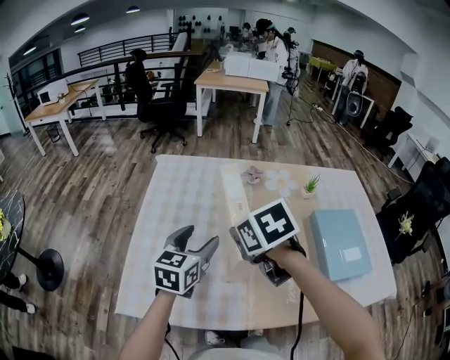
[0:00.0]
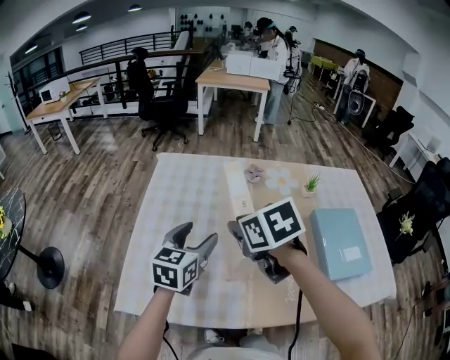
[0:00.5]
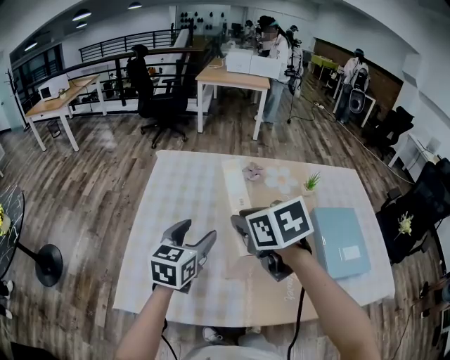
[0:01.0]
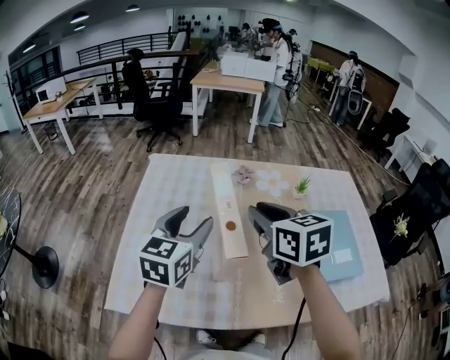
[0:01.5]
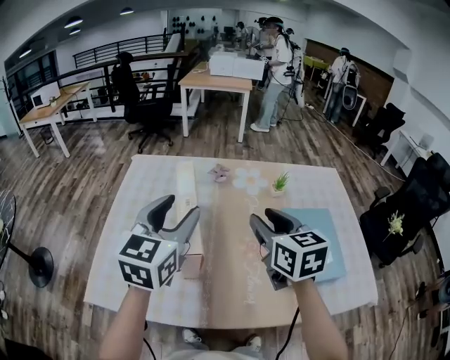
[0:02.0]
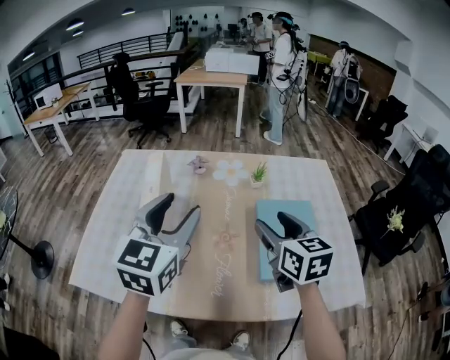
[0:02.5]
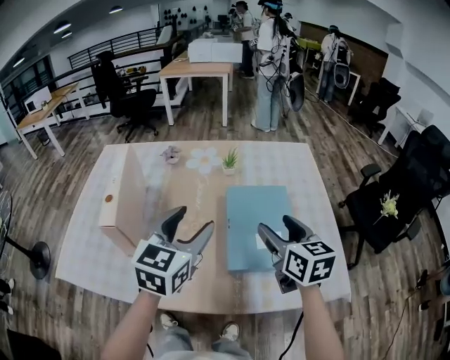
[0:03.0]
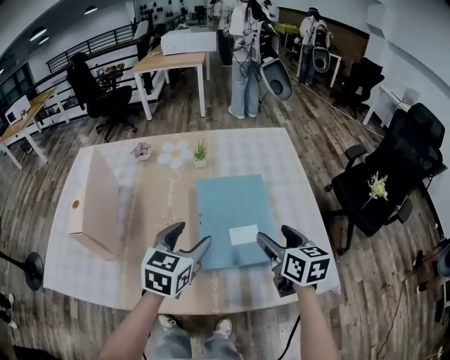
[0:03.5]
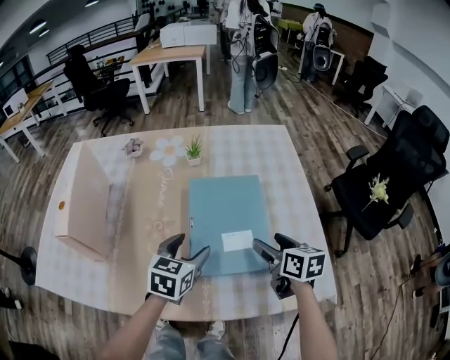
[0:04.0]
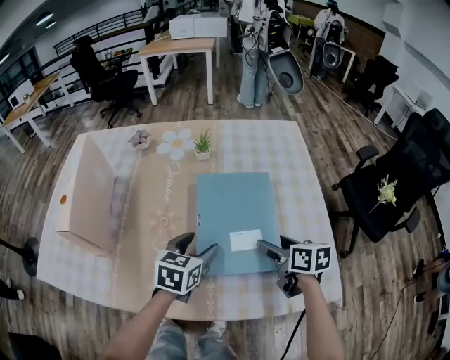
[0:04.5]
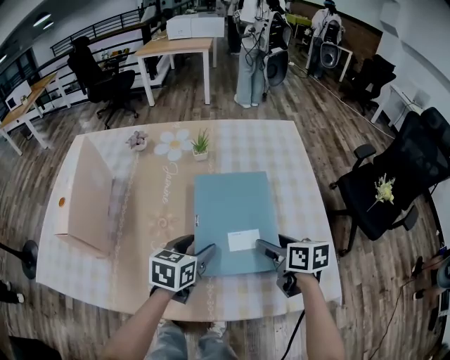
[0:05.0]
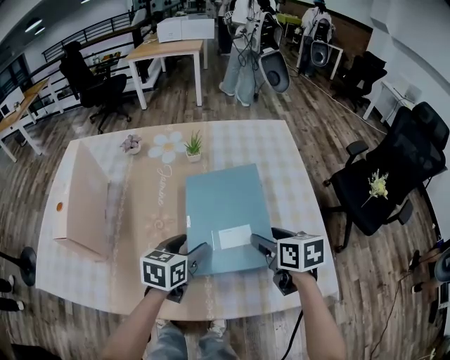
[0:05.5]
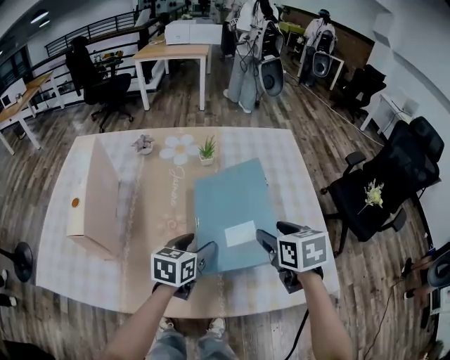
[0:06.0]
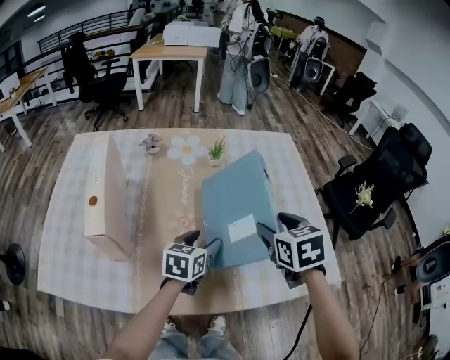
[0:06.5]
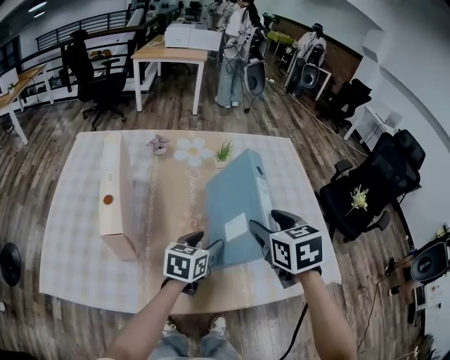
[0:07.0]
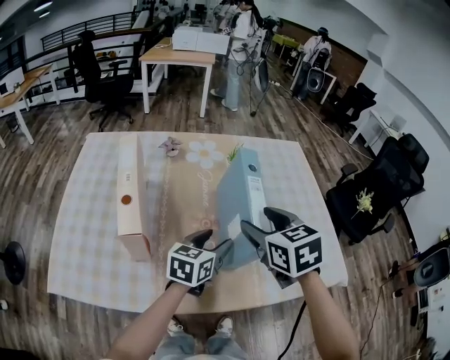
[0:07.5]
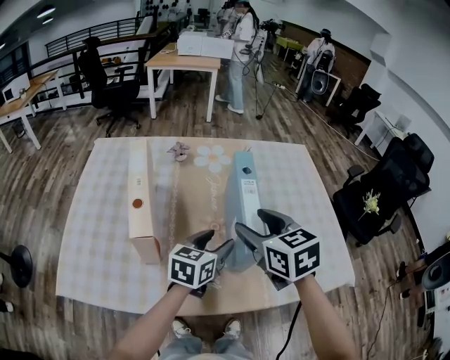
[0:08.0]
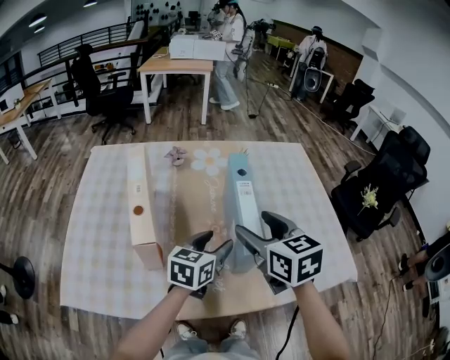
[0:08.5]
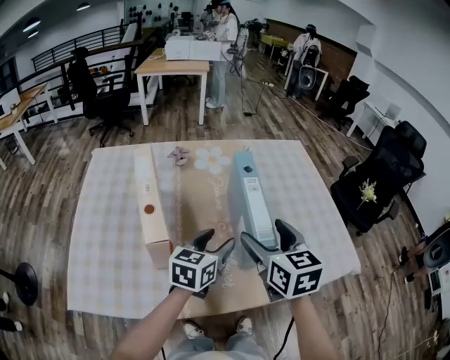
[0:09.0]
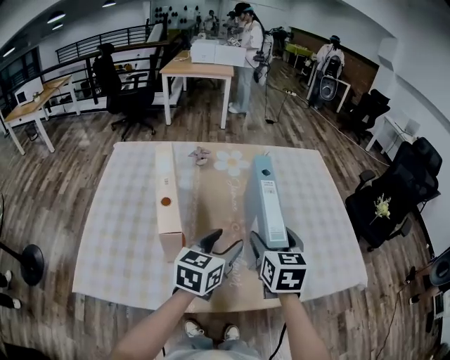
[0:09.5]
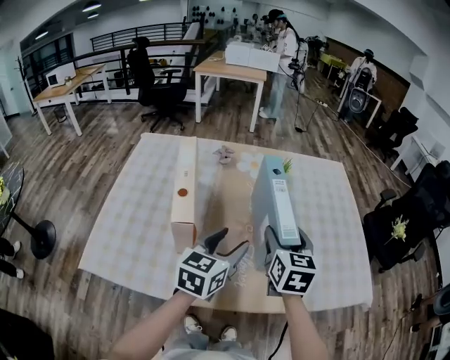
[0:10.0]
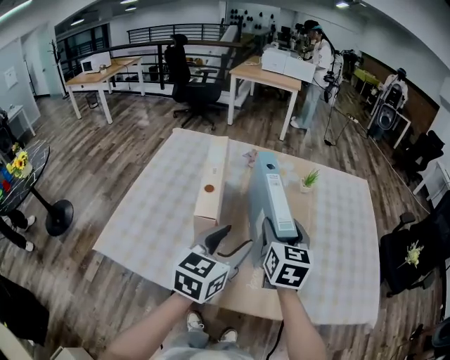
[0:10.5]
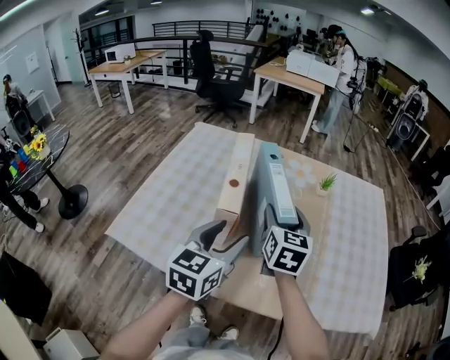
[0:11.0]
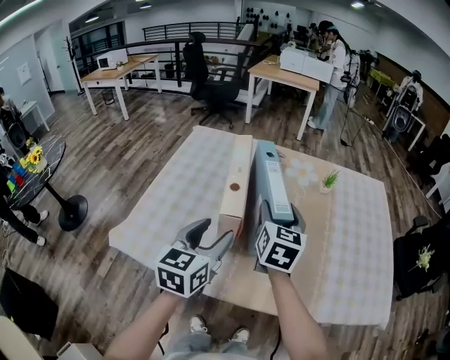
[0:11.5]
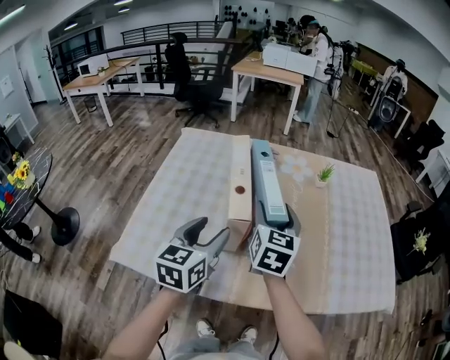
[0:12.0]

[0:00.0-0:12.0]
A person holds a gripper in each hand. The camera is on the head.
0:00.0 to 0:02.0: The right gripper travels to the right by approximately 20 cm, and tilts its fingers about 30 degrees upward. Meanwhile the left gripper goes approximately 15 cm upward and to the right.
0:02.0 to 0:04.0: The two grippers go some 40 cm to the right and downward. The left gripper rotates some 30 degrees. Meanwhile the right gripper swivels about 30 degrees, and opens.
0:04.0 to 0:06.0: The right gripper is displaced upward and to the left by roughly 10 cm, and turns by roughly 20 degrees.
0:06.0 to 0:08.0: The right gripper moves to the left and upward, some 25 cm. The left gripper goes roughly 10 cm to the left and upward.
0:08.0 to 0:10.0: The left gripper heads upward and to the left, covering some 10 cm. The right gripper swivels roughly 20 degrees.
0:10.0 to 0:12.0: The two grippers go roughly 20 cm to the left.

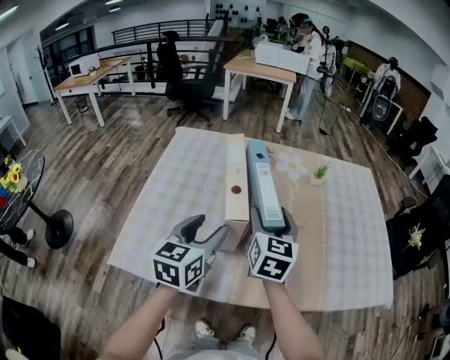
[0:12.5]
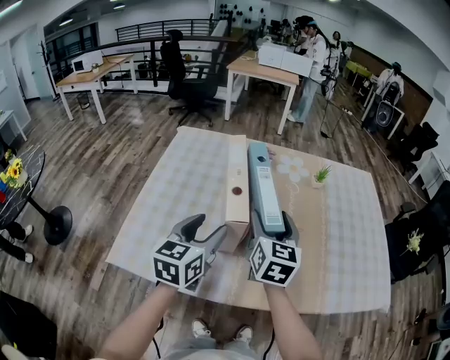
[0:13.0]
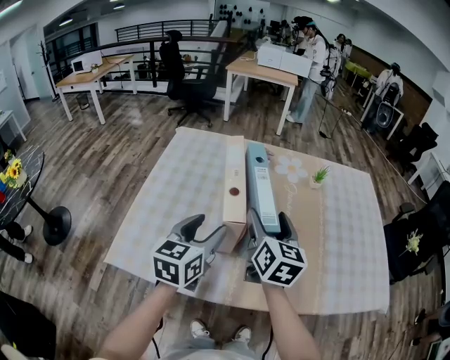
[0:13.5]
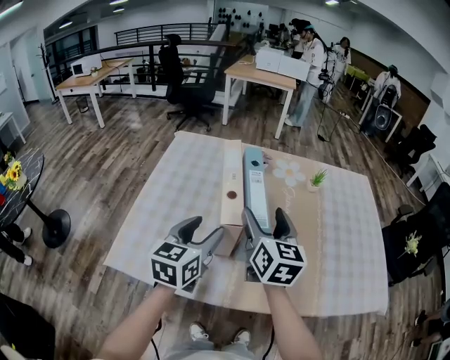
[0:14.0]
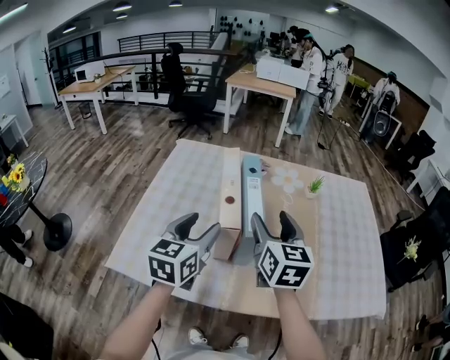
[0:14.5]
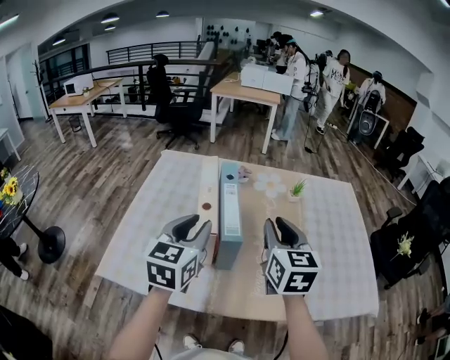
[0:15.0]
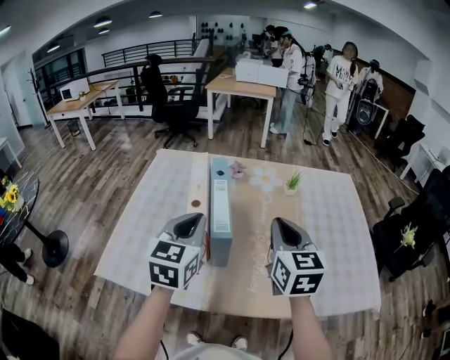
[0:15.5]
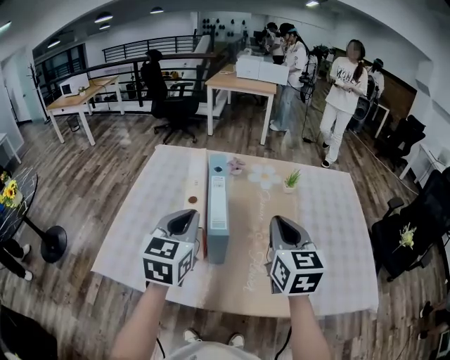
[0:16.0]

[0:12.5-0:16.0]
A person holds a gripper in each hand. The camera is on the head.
0:12.5 to 0:14.5: The right gripper travels upward by roughly 5 cm.
0:14.5 to 0:16.0: The right gripper goes some 10 cm to the right, and closes its fingers. Meanwhile the left gripper heads to the right, covering roughly 5 cm, and closes its fingers.

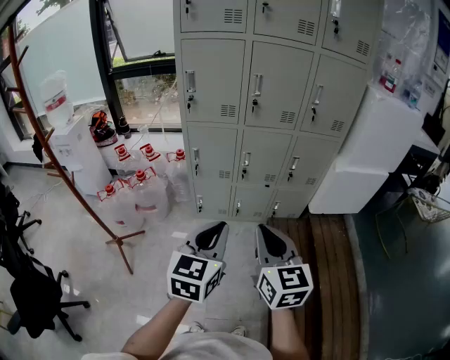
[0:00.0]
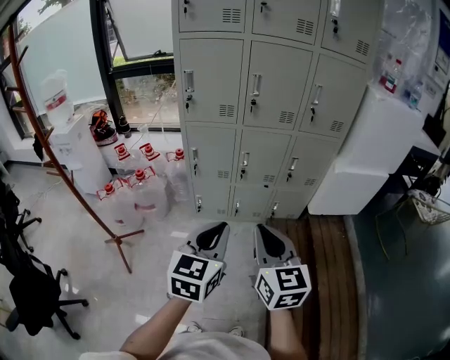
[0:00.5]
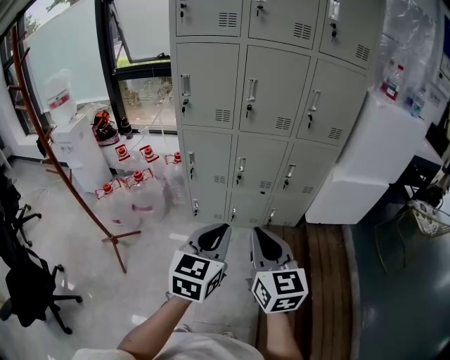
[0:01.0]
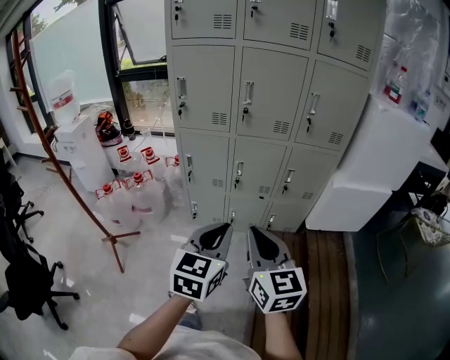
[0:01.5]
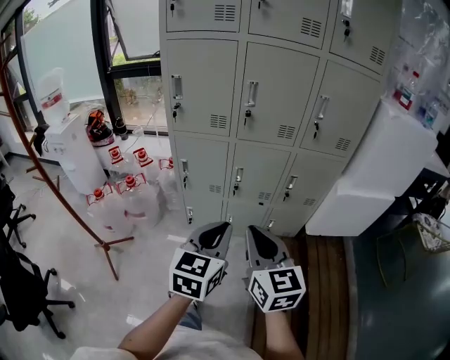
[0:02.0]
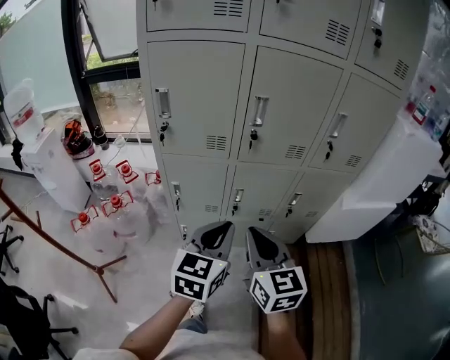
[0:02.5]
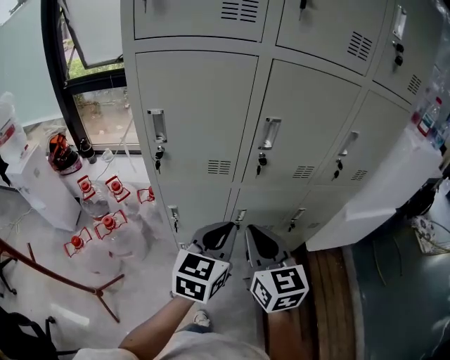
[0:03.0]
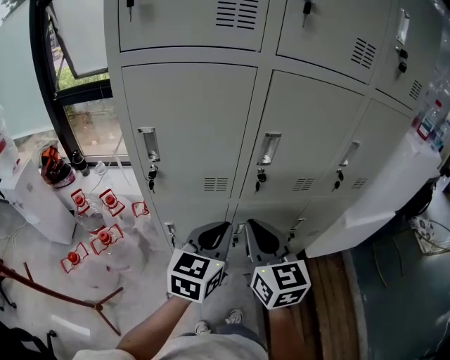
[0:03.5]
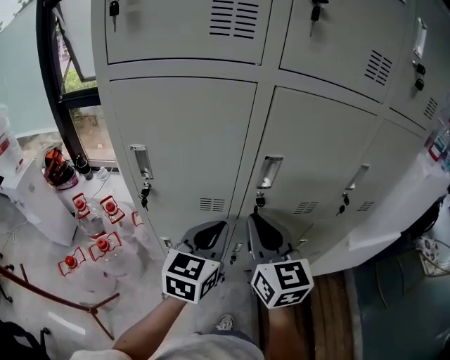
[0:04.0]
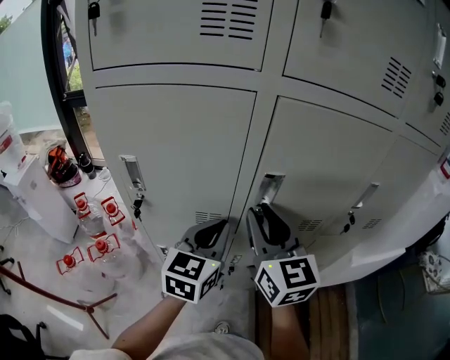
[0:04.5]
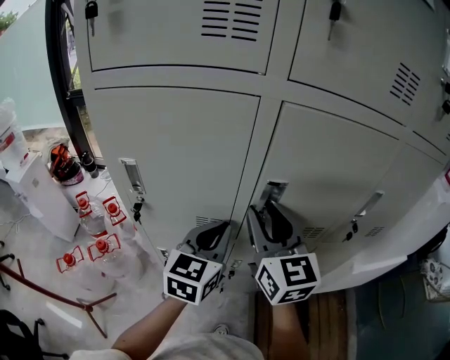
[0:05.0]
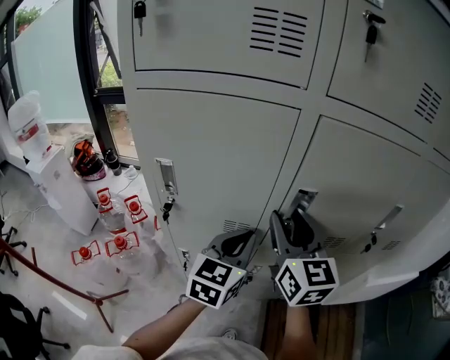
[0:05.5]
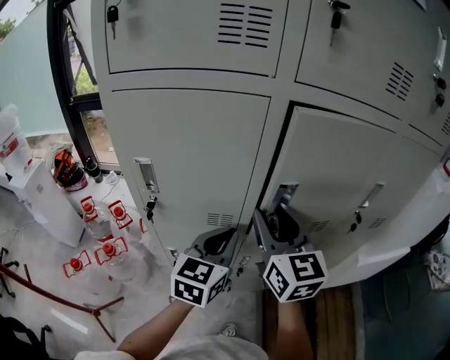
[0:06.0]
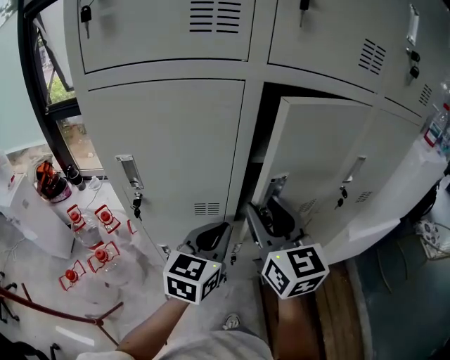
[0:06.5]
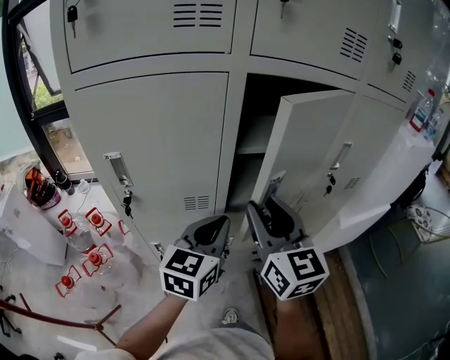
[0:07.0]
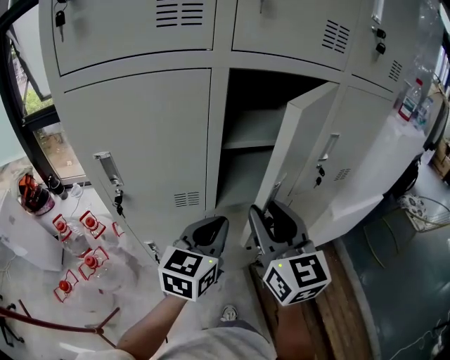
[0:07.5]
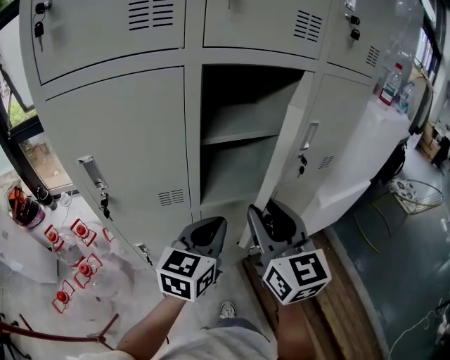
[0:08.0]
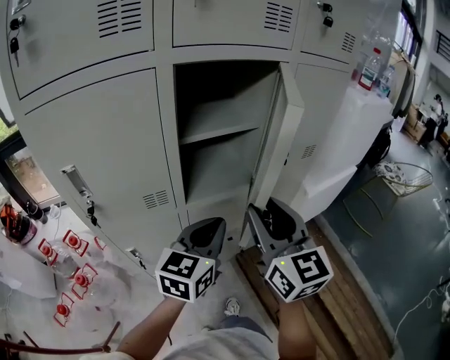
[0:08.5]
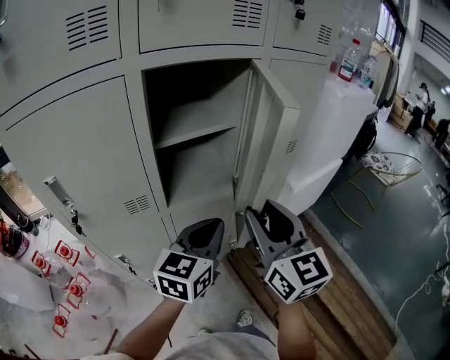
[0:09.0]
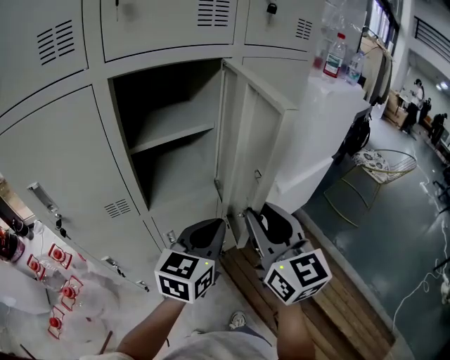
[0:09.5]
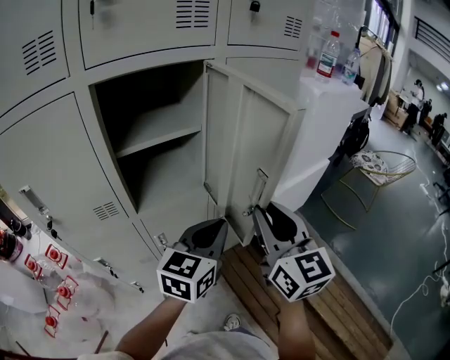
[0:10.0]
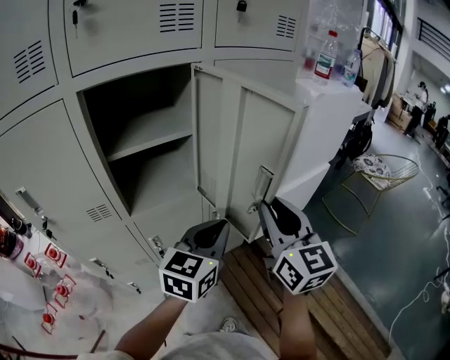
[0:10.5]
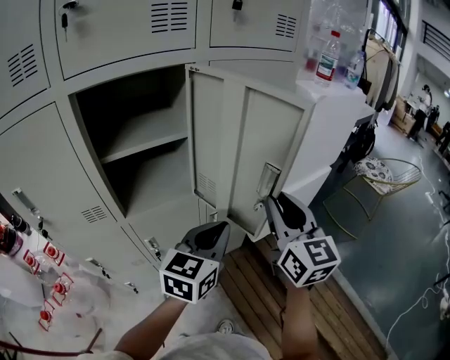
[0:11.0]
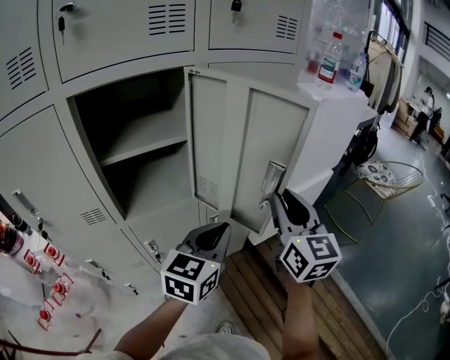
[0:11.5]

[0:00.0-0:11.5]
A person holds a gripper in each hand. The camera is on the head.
0:00.0 to 0:02.0: The left gripper moves forward and to the right, approximately 15 cm; the right gripper goes roughly 15 cm forward.
0:02.0 to 0:04.0: The two grippers go approximately 40 cm forward.
0:04.0 to 0:06.0: The right gripper moves forward, approximately 5 cm, and opens up.
0:06.0 to 0:07.5: The right gripper moves backward and to the right, roughly 10 cm; the left gripper is displaced to the right by roughly 5 cm.
0:07.5 to 0:09.5: The two grippers go approximately 15 cm to the right.
0:09.5 to 0:11.5: The left gripper moves to the right and forward, about 10 cm, while the right gripper goes roughly 20 cm to the right and forward.
